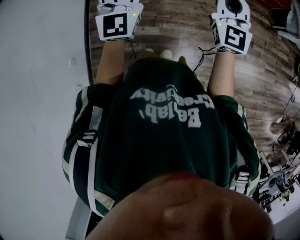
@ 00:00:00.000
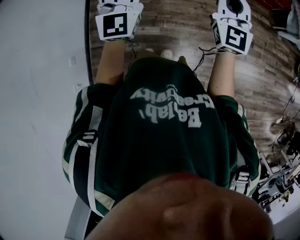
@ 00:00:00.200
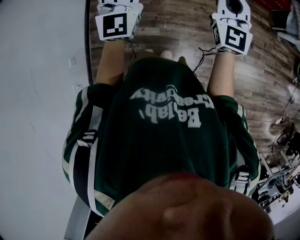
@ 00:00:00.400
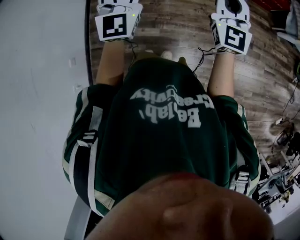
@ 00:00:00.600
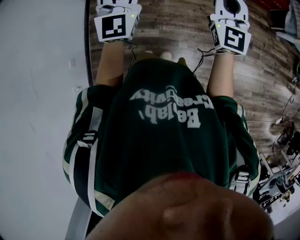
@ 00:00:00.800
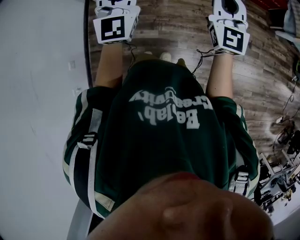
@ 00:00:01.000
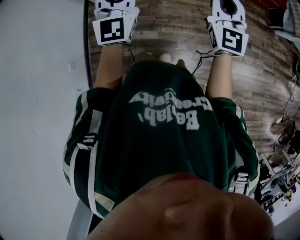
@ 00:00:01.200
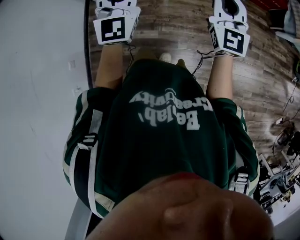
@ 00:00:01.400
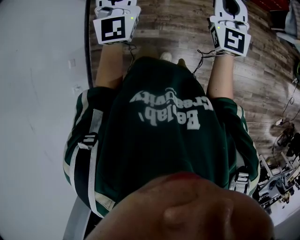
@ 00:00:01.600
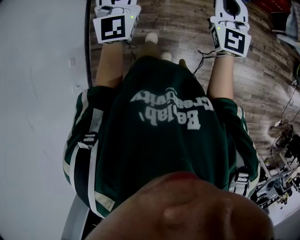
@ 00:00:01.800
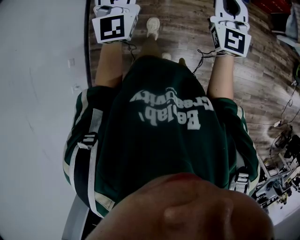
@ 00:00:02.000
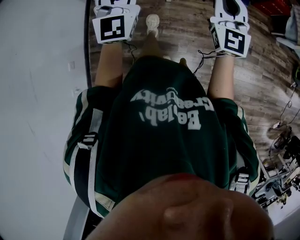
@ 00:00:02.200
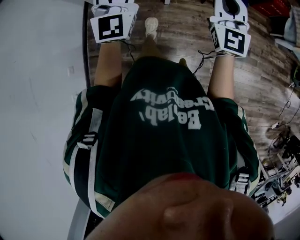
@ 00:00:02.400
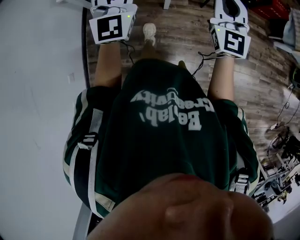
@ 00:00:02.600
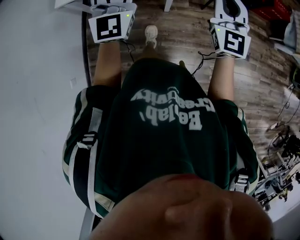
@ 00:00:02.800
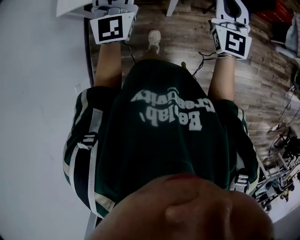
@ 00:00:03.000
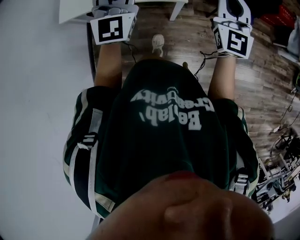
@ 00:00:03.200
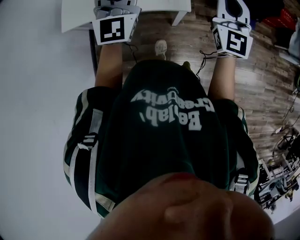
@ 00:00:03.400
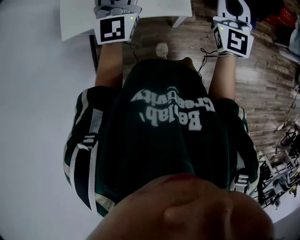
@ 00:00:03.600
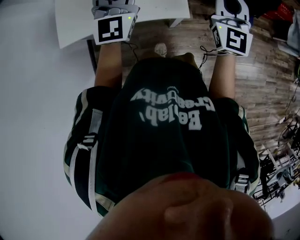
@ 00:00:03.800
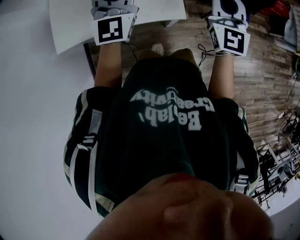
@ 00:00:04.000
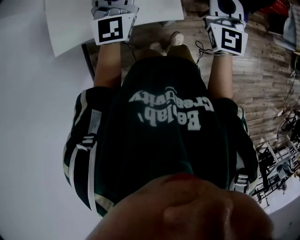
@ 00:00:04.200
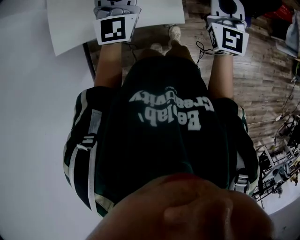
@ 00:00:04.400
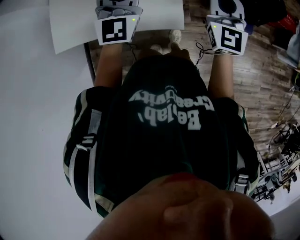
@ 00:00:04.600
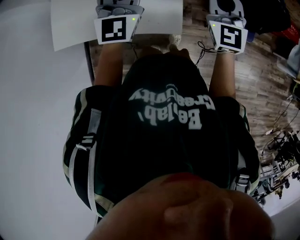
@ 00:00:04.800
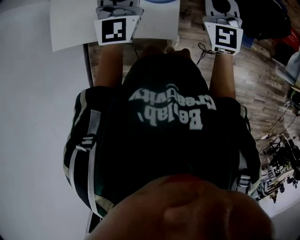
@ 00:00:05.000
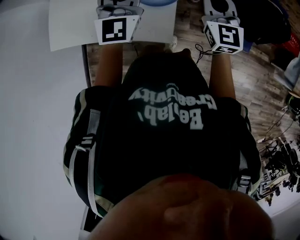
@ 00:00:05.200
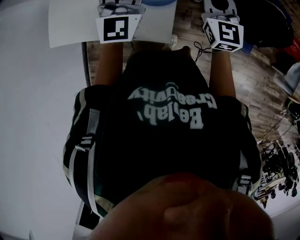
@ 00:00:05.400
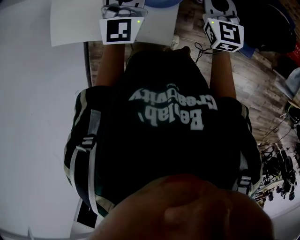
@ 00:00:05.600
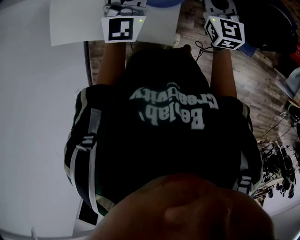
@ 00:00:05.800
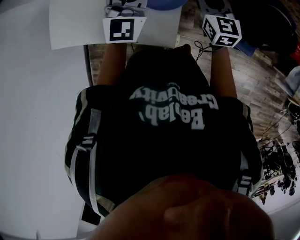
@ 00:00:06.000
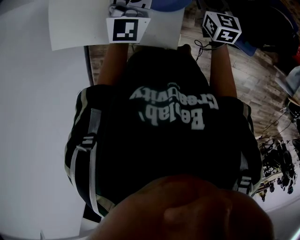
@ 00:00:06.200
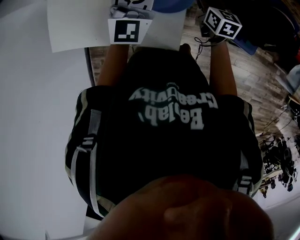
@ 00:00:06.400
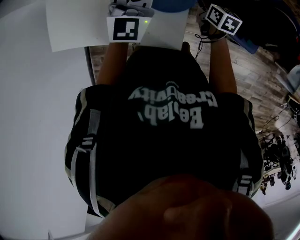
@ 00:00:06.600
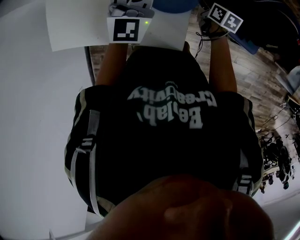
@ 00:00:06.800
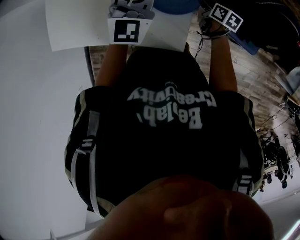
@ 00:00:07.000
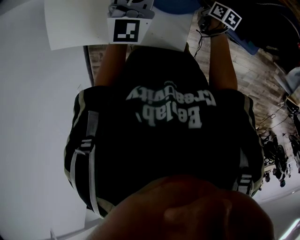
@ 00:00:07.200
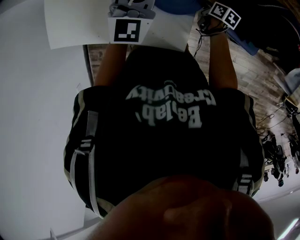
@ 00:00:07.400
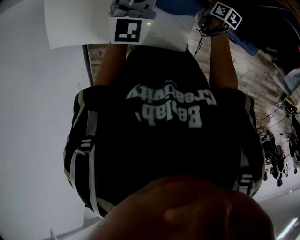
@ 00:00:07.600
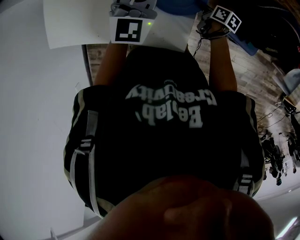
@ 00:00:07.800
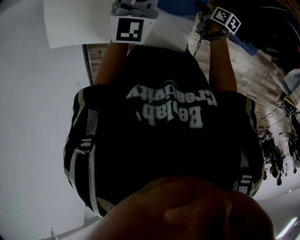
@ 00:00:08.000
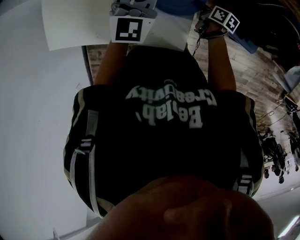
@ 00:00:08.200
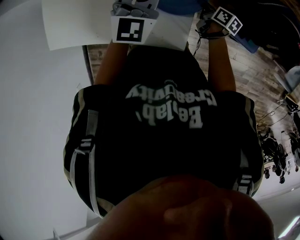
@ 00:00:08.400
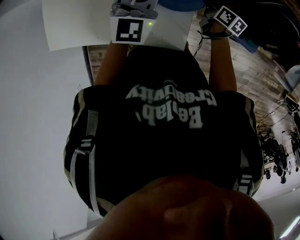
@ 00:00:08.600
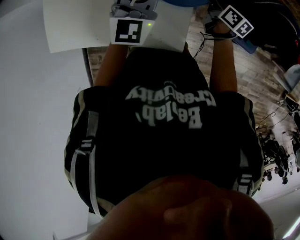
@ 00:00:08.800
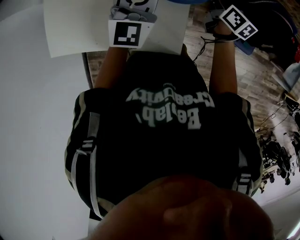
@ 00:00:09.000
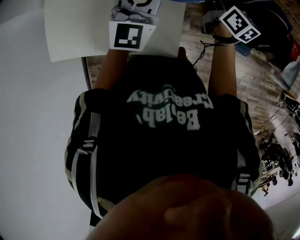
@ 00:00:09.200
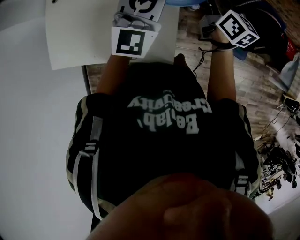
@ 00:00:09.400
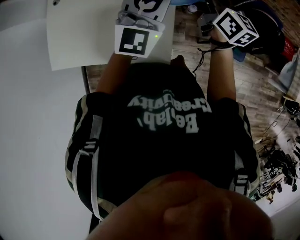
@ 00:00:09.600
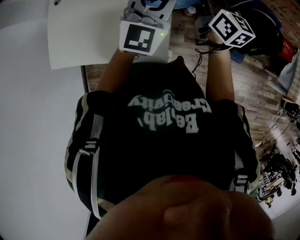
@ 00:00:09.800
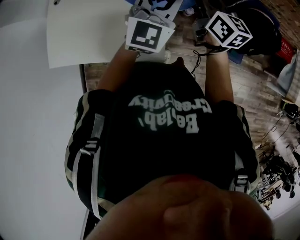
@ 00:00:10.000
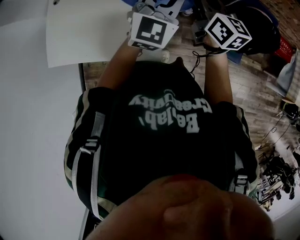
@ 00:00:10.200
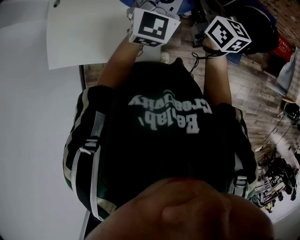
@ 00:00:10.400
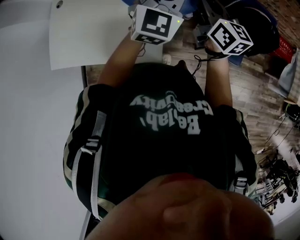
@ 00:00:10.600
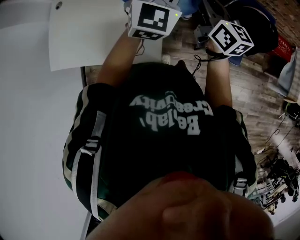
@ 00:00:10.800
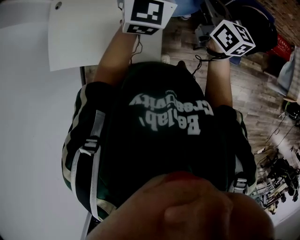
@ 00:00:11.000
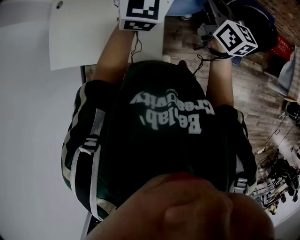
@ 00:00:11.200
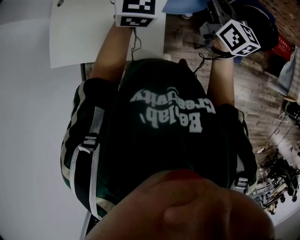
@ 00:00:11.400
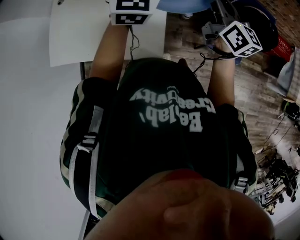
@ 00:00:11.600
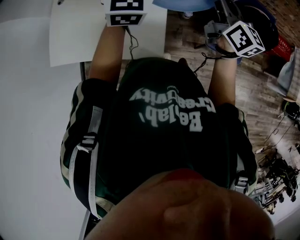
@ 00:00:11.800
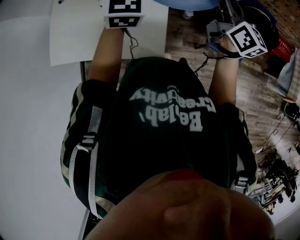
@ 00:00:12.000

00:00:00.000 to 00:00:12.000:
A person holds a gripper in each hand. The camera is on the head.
00:00:00.000 to 00:00:01.600: The grippers make only small movements.
00:00:01.600 to 00:00:03.000: The grippers both shift forward by about 25 cm.
00:00:03.000 to 00:00:04.400: Both grippers move forward, approximately 25 cm.
00:00:04.400 to 00:00:06.000: The right gripper is displaced forward and downward by about 25 cm, rotates approximately 30 degrees, and opens. The left gripper shifts approximately 20 cm forward, downward and to the right.
00:00:06.000 to 00:00:07.600: The right gripper is displaced downward by some 25 cm, and twists some 50 degrees clockwise, seen from behind, while the left gripper moves forward and downward, some 10 cm.
00:00:07.600 to 00:00:09.000: The right gripper heads upward, covering roughly 20 cm, and changes its angle by approximately 30 degrees; the left gripper ends up some 5 cm from where it was.
00:00:09.000 to 00:00:10.400: The right gripper goes approximately 20 cm upward and backward, and turns by approximately 20 degrees. Meanwhile the left gripper travels to the right and upward by approximately 20 cm.
00:00:10.400 to 00:00:12.000: The left gripper shifts roughly 10 cm to the left and upward. The right gripper moves upward, approximately 5 cm.

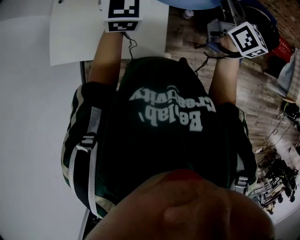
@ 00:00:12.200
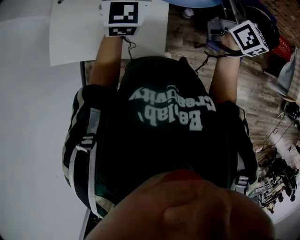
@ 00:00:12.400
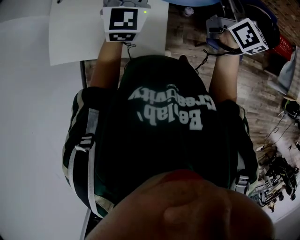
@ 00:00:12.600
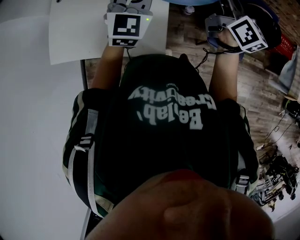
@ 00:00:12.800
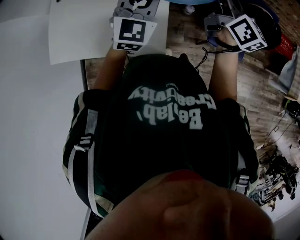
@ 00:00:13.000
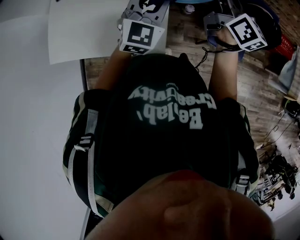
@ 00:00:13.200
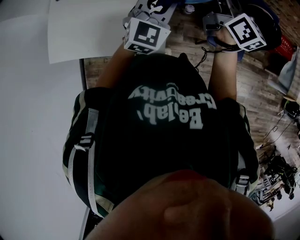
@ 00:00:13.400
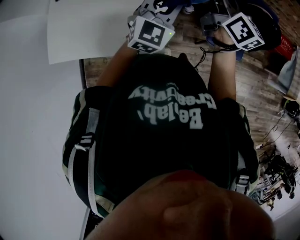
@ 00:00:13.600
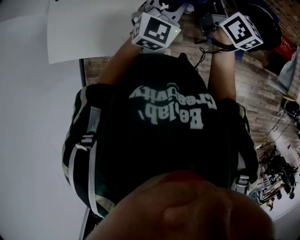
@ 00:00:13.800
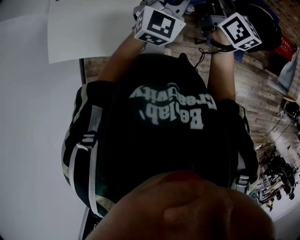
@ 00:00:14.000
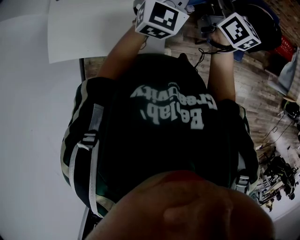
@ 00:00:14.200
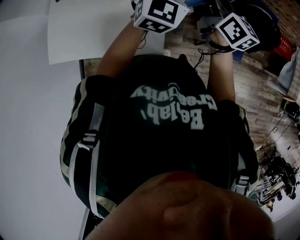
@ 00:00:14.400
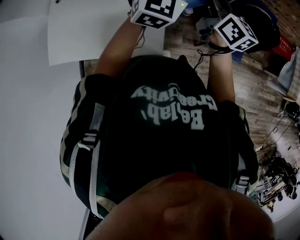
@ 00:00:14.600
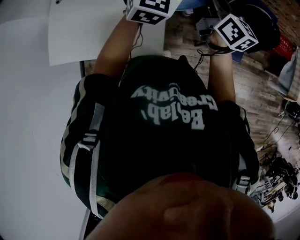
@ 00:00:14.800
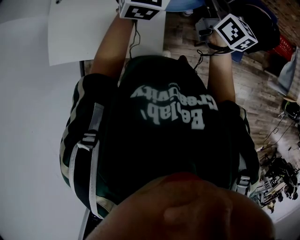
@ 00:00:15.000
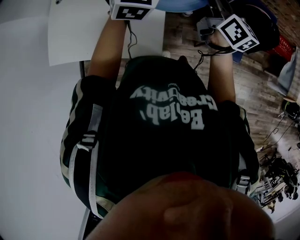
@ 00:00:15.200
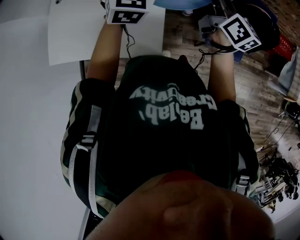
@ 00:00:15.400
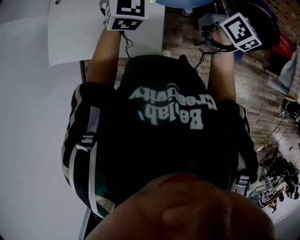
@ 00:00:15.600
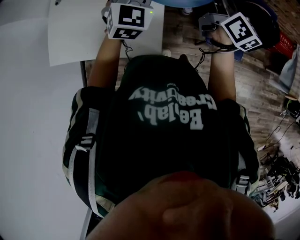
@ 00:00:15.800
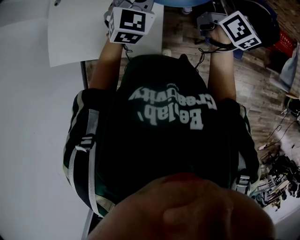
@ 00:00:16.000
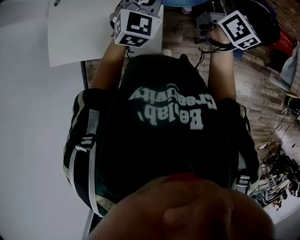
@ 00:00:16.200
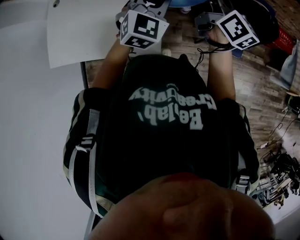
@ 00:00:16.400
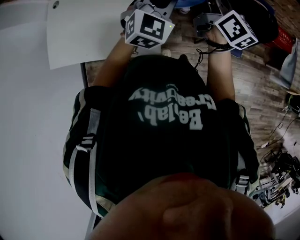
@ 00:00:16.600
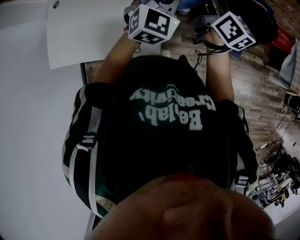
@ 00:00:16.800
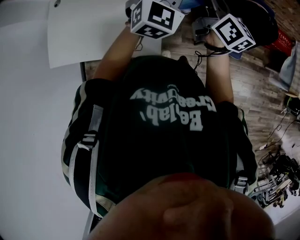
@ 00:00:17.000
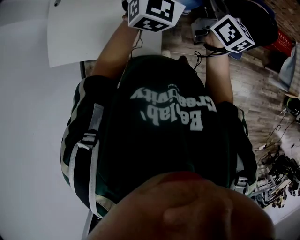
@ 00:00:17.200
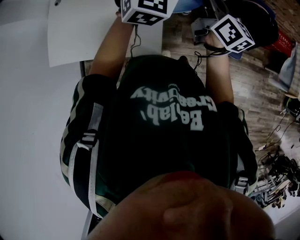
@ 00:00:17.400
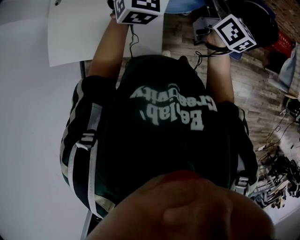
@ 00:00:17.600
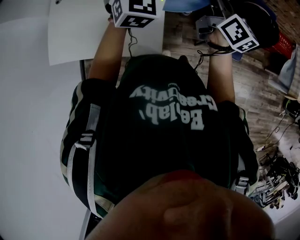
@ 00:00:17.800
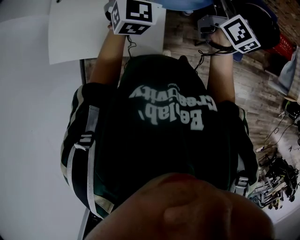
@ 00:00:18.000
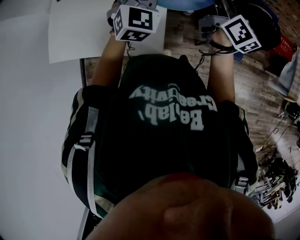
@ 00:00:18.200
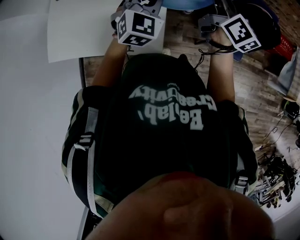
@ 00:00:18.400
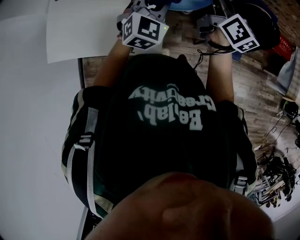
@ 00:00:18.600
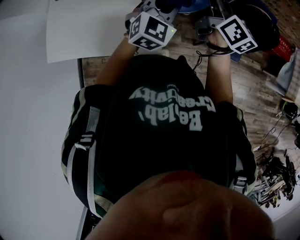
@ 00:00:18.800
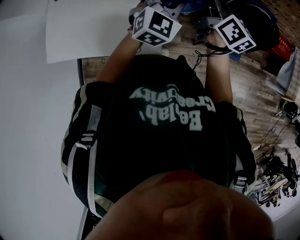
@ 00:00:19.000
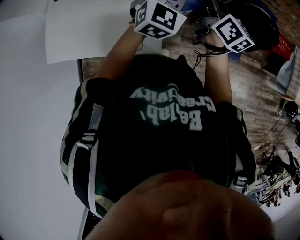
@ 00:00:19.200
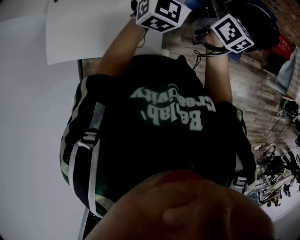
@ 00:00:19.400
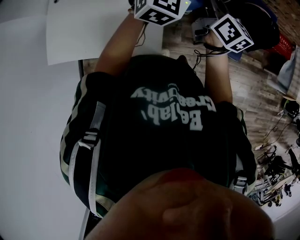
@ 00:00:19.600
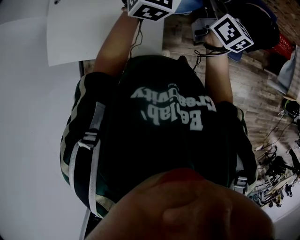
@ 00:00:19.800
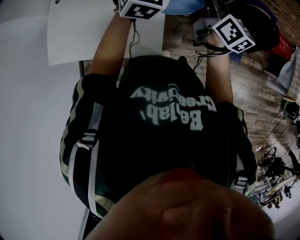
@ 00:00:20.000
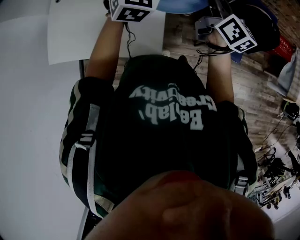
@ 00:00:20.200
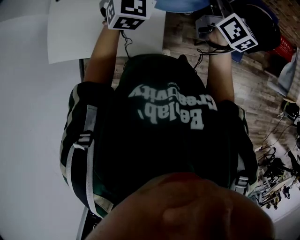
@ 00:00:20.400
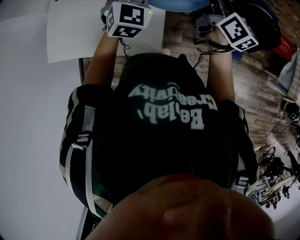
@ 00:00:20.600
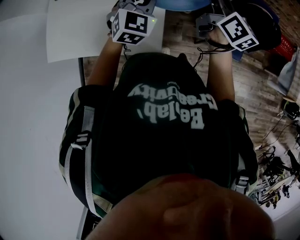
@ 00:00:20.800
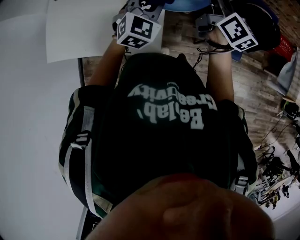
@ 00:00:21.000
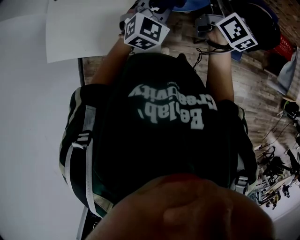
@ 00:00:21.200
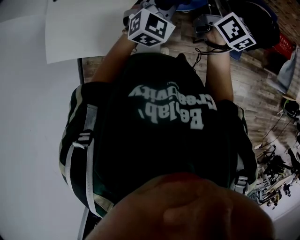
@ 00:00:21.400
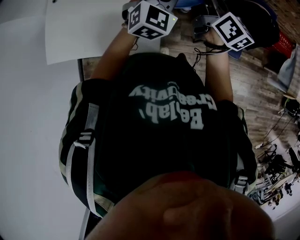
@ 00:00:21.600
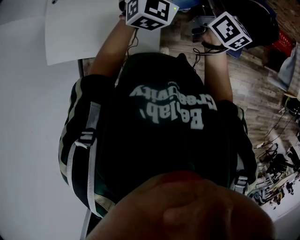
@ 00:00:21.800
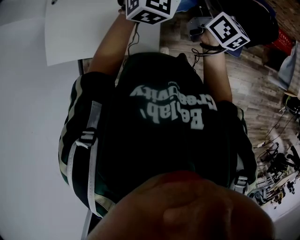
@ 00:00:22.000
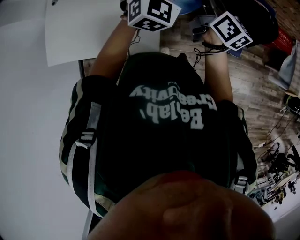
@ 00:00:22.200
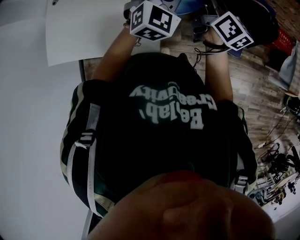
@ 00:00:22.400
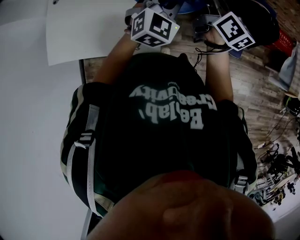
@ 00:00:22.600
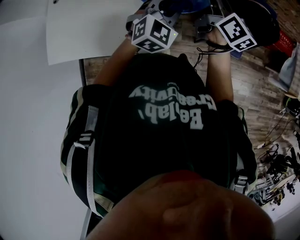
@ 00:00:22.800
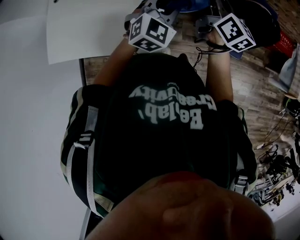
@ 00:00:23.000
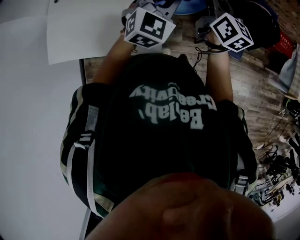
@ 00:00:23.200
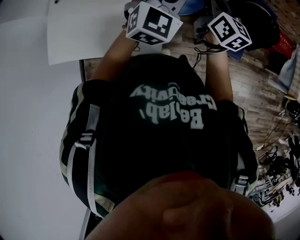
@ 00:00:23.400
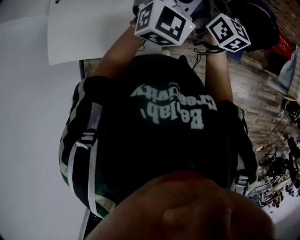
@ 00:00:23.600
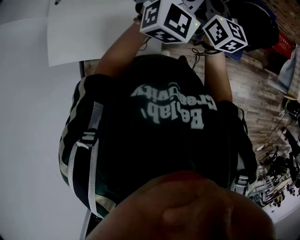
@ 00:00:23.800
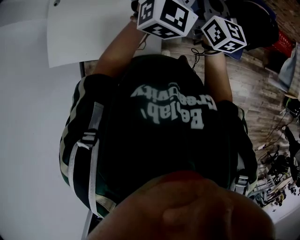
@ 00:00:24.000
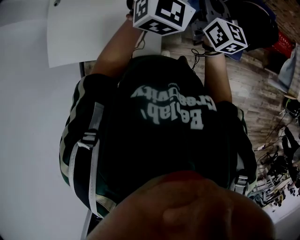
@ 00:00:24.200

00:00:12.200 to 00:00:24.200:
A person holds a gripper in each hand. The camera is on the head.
00:00:12.200 to 00:00:13.800: The left gripper shifts roughly 15 cm to the right, downward and backward.
00:00:13.800 to 00:00:15.200: The left gripper is displaced upward, forward and to the left by some 15 cm.
00:00:15.200 to 00:00:16.600: The left gripper goes approximately 15 cm downward, backward and to the right.
00:00:16.600 to 00:00:18.200: The left gripper heads to the left, covering roughly 5 cm.
00:00:18.200 to 00:00:19.800: The left gripper goes approximately 10 cm to the right, upward and forward.
00:00:19.800 to 00:00:21.200: The left gripper moves downward and backward, about 15 cm.
00:00:21.200 to 00:00:22.600: The left gripper goes upward and returns, about 10 cm each way.
00:00:22.600 to 00:00:24.200: The left gripper travels upward by about 10 cm.
